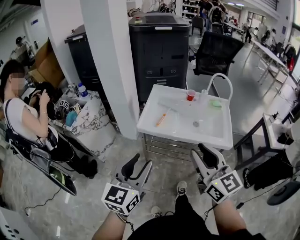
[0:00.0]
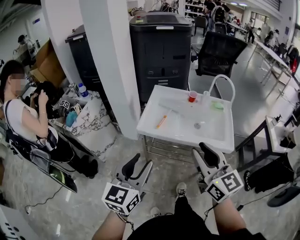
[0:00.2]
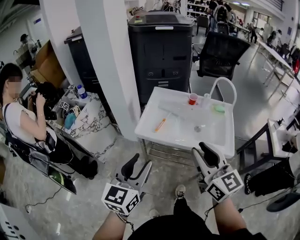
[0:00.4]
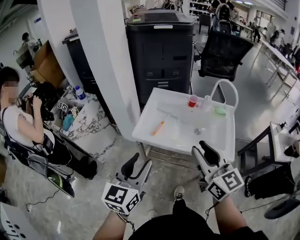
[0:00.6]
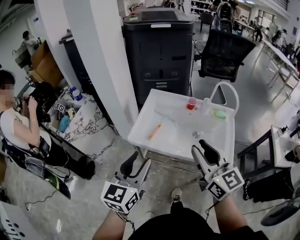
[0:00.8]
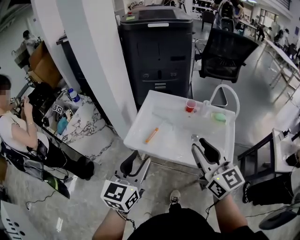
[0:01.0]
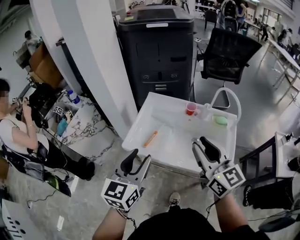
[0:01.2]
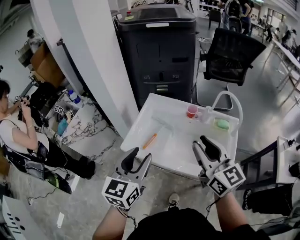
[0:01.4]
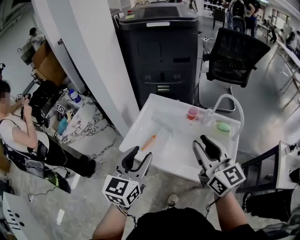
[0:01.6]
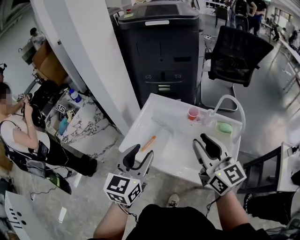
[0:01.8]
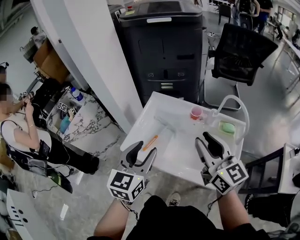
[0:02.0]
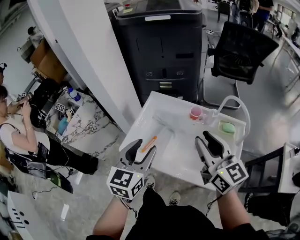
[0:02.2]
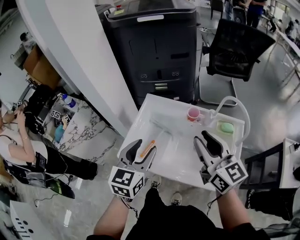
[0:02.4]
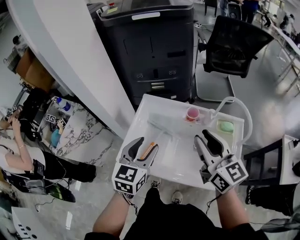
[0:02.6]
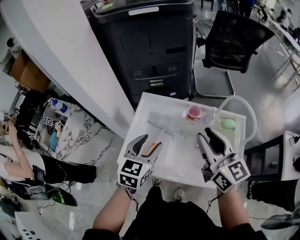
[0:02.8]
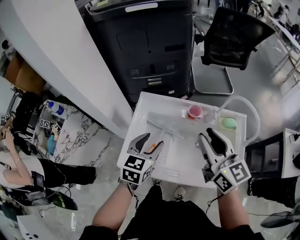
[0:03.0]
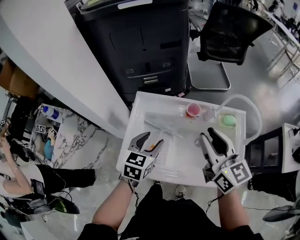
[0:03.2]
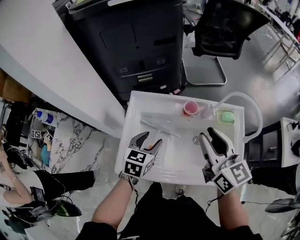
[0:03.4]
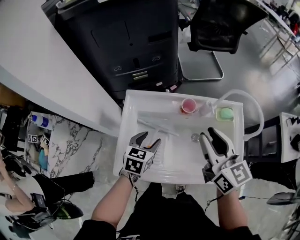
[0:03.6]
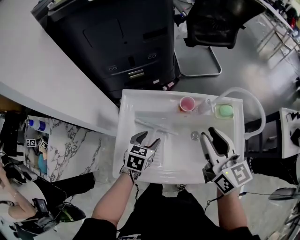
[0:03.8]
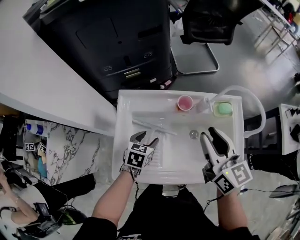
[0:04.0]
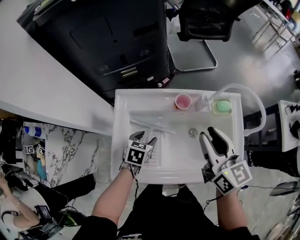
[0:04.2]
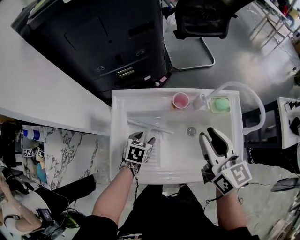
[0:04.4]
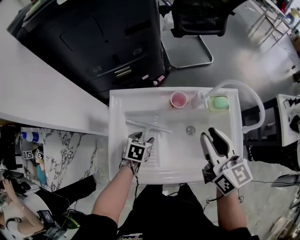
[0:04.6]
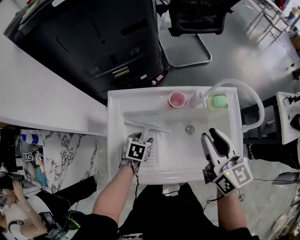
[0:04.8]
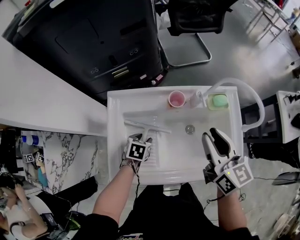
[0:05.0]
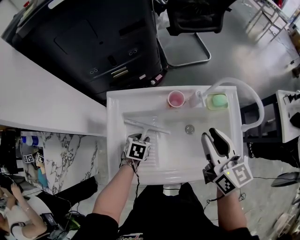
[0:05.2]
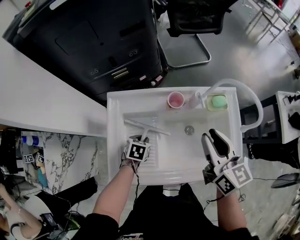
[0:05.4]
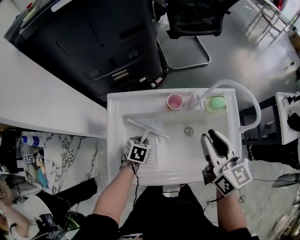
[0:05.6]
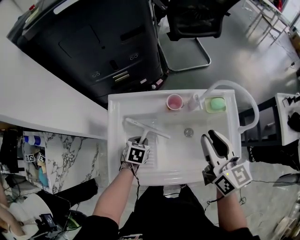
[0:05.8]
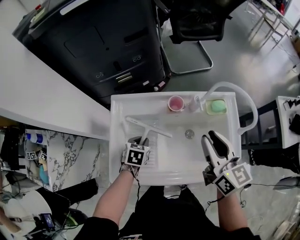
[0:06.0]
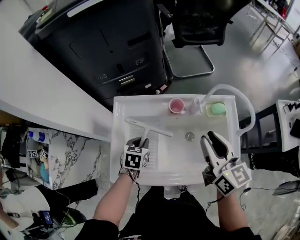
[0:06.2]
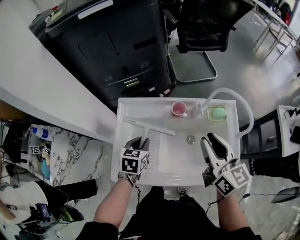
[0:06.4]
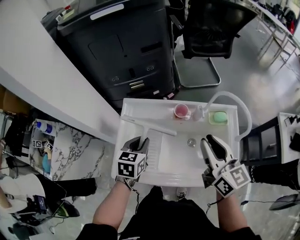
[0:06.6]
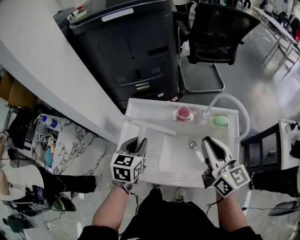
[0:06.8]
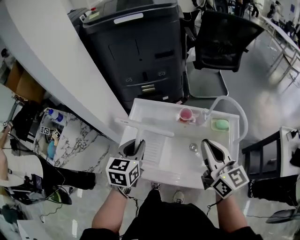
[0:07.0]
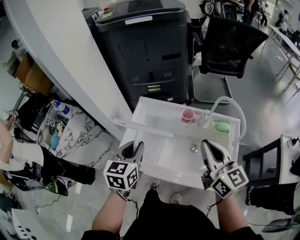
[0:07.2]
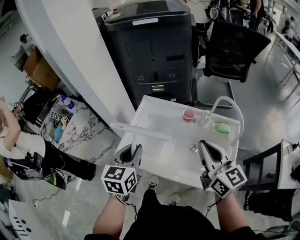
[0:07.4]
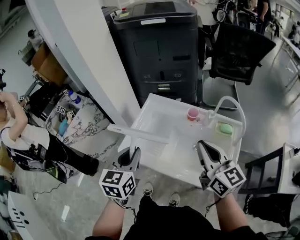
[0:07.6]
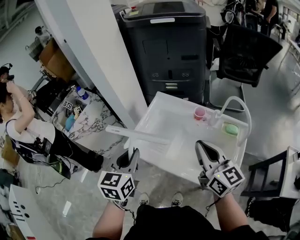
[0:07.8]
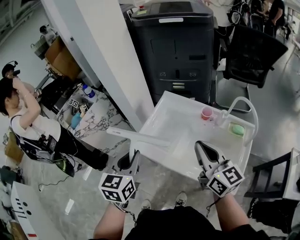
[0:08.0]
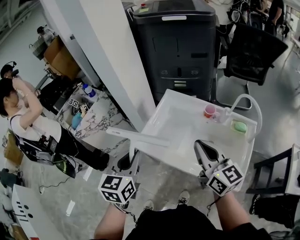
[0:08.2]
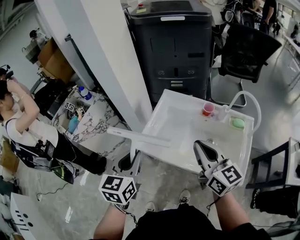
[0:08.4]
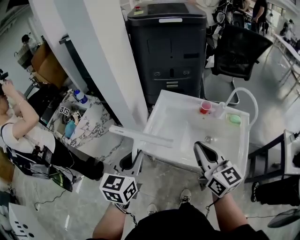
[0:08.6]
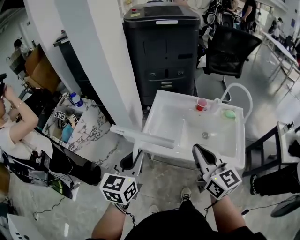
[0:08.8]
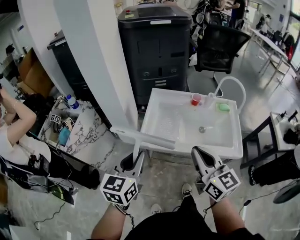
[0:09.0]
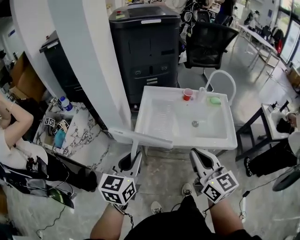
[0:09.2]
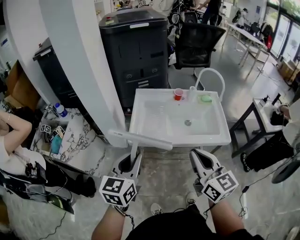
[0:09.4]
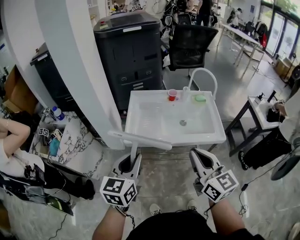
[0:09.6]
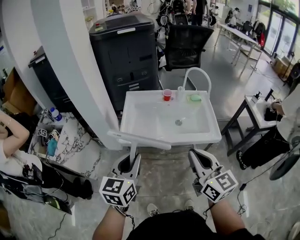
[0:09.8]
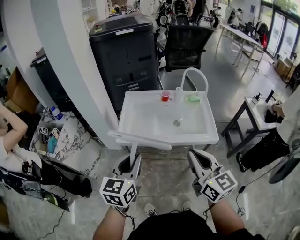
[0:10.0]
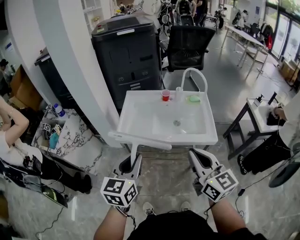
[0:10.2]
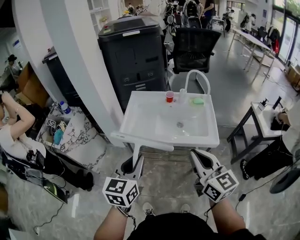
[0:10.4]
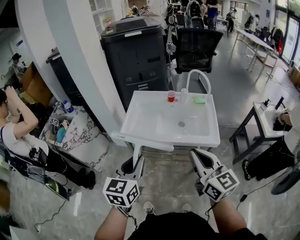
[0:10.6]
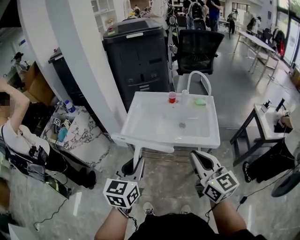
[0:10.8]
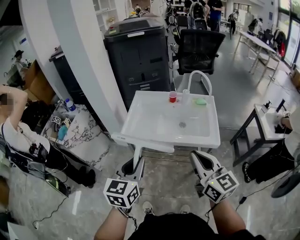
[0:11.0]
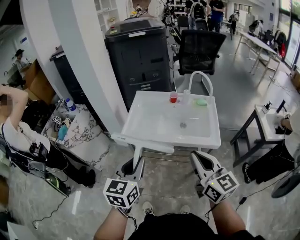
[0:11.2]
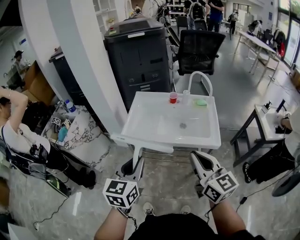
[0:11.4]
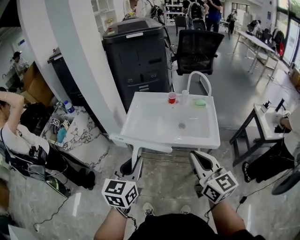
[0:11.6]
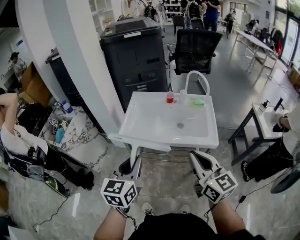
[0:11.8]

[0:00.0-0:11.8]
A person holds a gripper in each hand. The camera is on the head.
0:00.0 to 0:01.4: The grippers both shift forward and to the right by about 30 cm.
0:01.4 to 0:03.0: The left gripper is displaced forward and downward by about 25 cm, and swivels some 20 degrees; the right gripper moves forward, approximately 15 cm.
0:03.0 to 0:04.4: The right gripper shifts some 5 cm downward, while the left gripper moves downward, some 20 cm, and rotates about 30 degrees.
0:04.4 to 0:06.0: The left gripper closes.
0:06.0 to 0:07.4: The right gripper shifts by some 10 cm, rotates about 30 degrees, and closes, while the left gripper heads upward, covering roughly 25 cm, and angles its fingers upward, by about 40 degrees.
0:07.4 to 0:08.8: Both grippers move to the left and backward, approximately 20 cm.
0:08.8 to 0:10.4: Both grippers travel together backward and to the right, roughly 20 cm.
0:10.4 to 0:11.8: The grippers stay close to where they were, moving slightly.

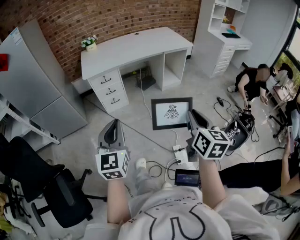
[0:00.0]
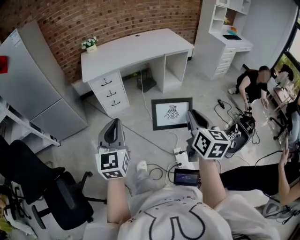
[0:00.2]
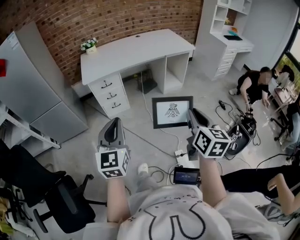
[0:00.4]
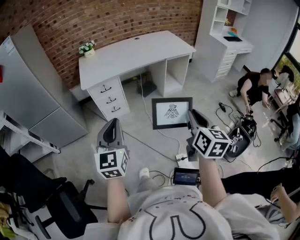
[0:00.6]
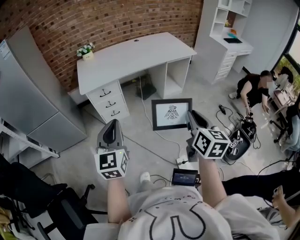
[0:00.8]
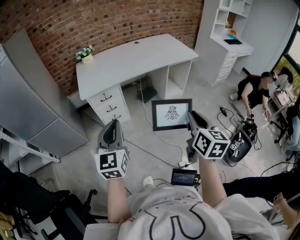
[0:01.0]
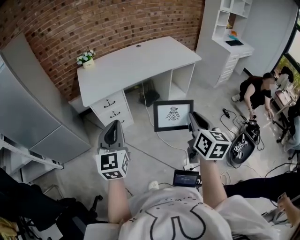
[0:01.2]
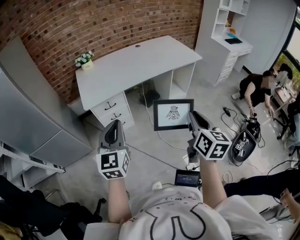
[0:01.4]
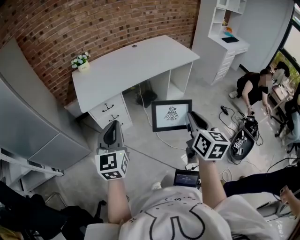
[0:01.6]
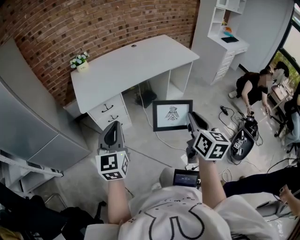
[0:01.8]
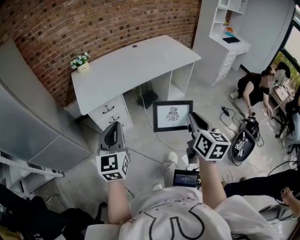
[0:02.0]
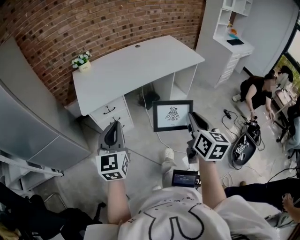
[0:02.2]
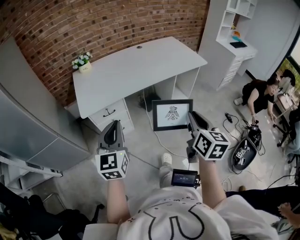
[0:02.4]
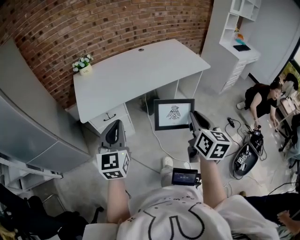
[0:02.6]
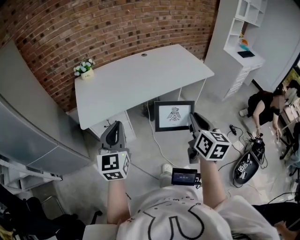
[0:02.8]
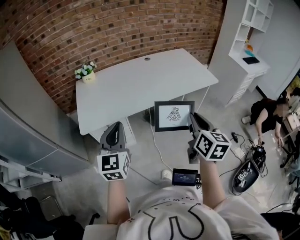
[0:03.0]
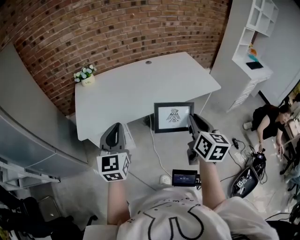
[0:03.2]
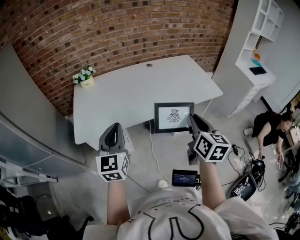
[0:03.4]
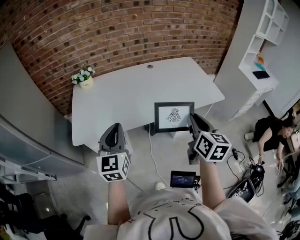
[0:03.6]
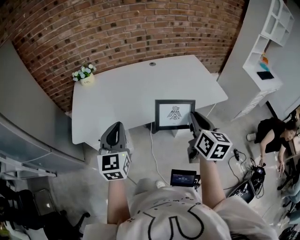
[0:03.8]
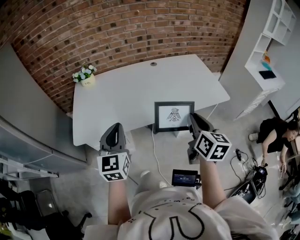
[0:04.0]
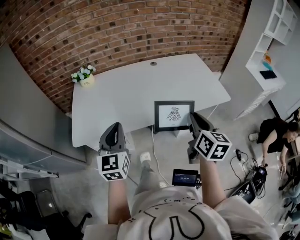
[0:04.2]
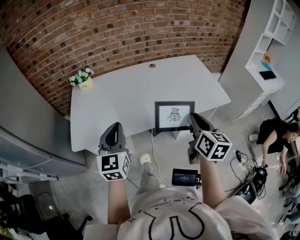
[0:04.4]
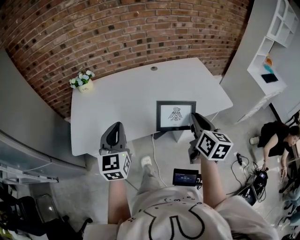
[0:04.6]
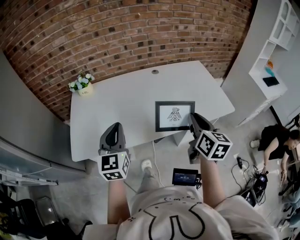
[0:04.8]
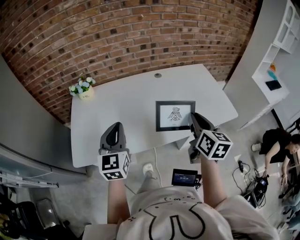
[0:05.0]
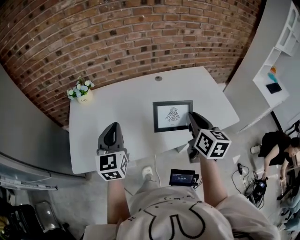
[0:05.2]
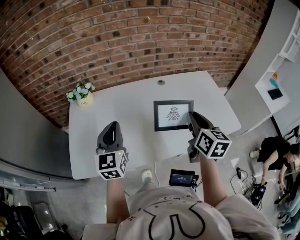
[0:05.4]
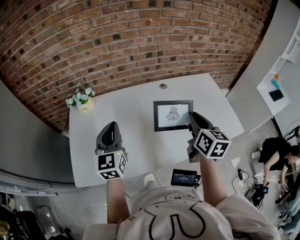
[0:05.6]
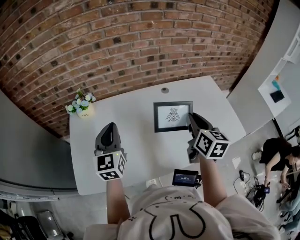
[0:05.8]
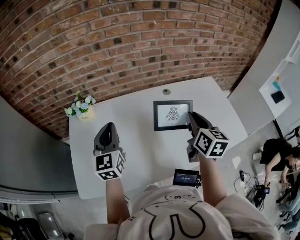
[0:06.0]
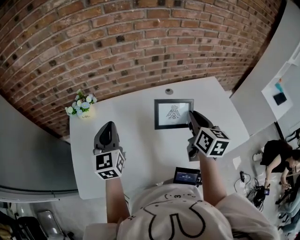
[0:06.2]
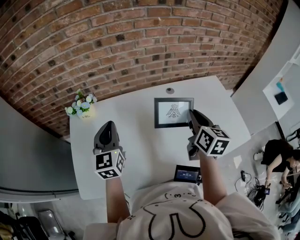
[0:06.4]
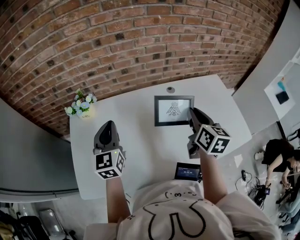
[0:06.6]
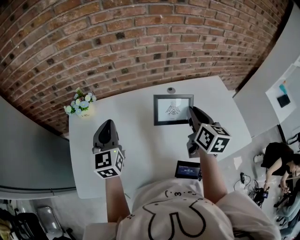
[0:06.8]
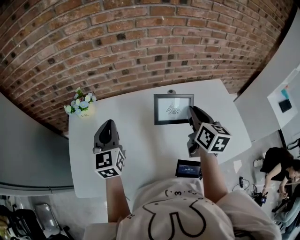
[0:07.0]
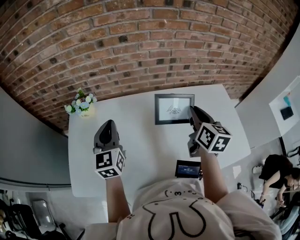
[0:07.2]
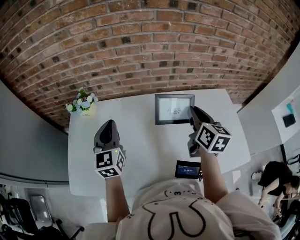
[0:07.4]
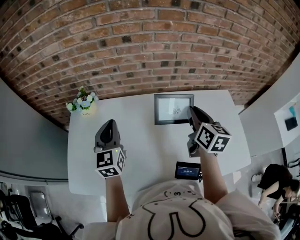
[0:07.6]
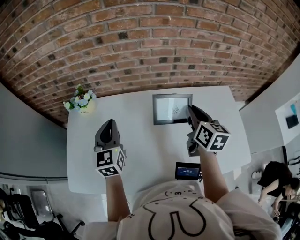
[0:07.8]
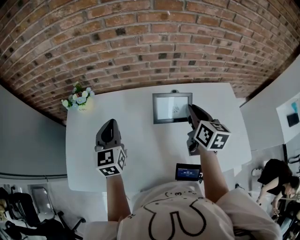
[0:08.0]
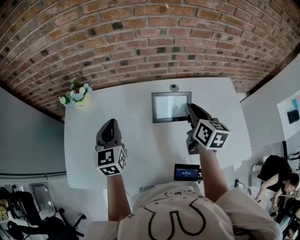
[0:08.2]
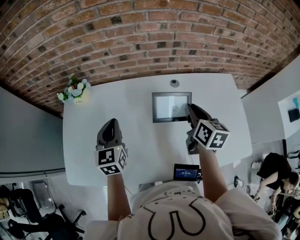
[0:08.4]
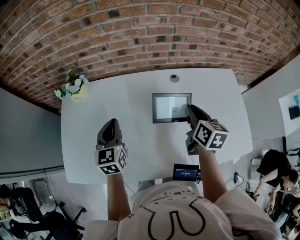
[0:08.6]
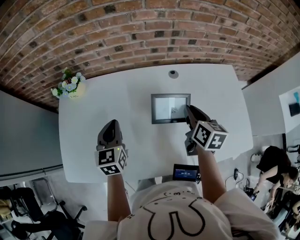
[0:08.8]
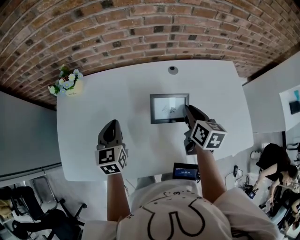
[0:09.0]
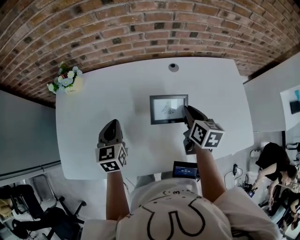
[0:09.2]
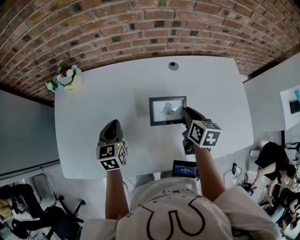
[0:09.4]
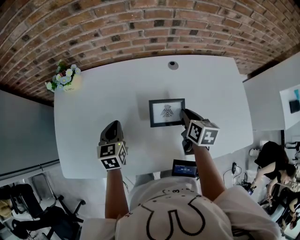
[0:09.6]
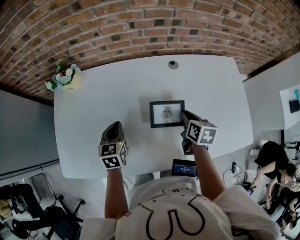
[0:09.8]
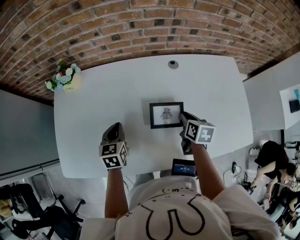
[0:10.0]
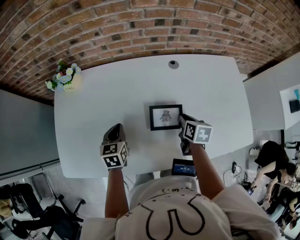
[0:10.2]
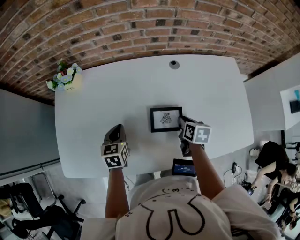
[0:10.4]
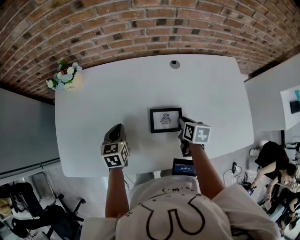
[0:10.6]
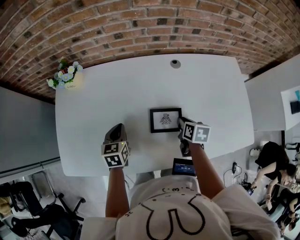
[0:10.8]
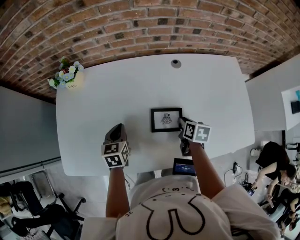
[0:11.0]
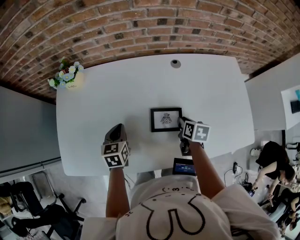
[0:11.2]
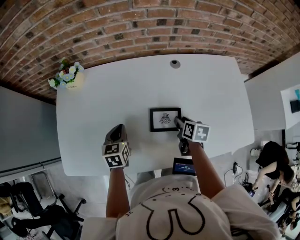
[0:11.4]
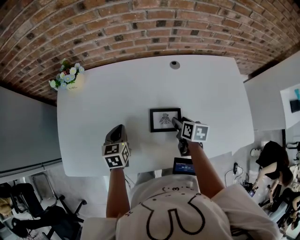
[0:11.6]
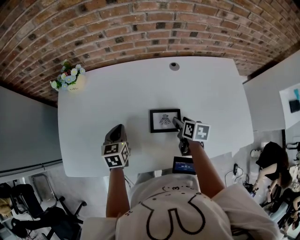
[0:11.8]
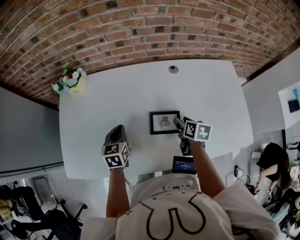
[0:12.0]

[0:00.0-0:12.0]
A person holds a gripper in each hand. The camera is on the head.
0:00.0 to 0:01.6: Both grippers travel together forward and to the left, about 30 cm.
0:01.6 to 0:03.0: Both grippers travel together forward, roughly 25 cm.
0:03.0 to 0:04.4: Both grippers travel together forward, about 20 cm.
0:04.4 to 0:06.0: Both grippers travel together forward, roughly 30 cm.
0:06.0 to 0:07.6: The right gripper heads forward, covering approximately 15 cm. The left gripper moves forward, approximately 5 cm.
0:07.6 to 0:09.0: Both grippers move downward, some 15 cm.
0:09.0 to 0:10.4: Both grippers move downward, about 10 cm.
0:10.4 to 0:12.0: The right gripper opens.
